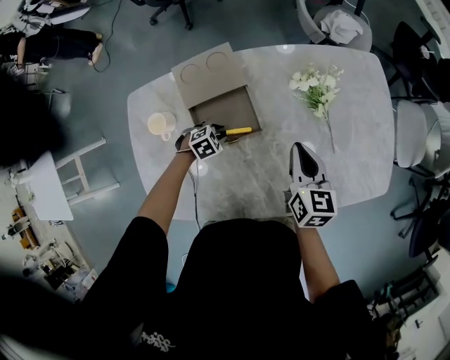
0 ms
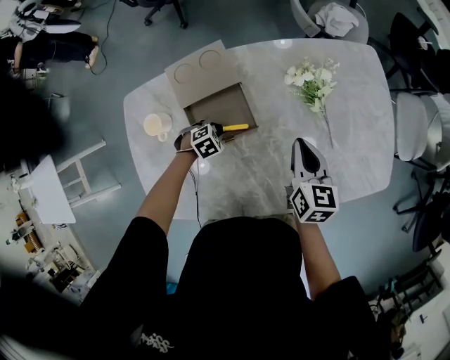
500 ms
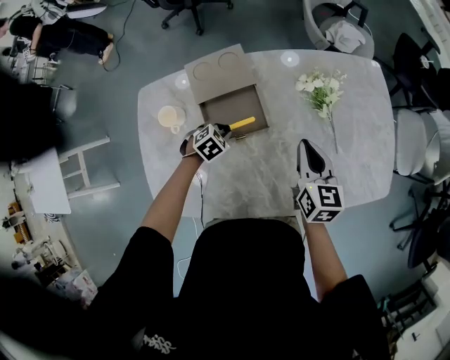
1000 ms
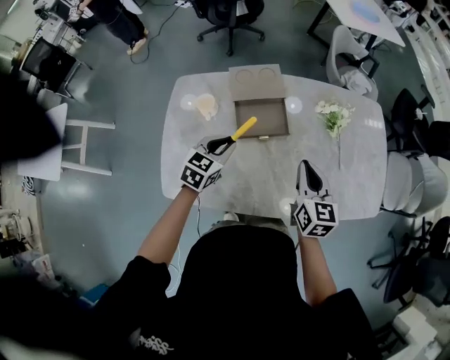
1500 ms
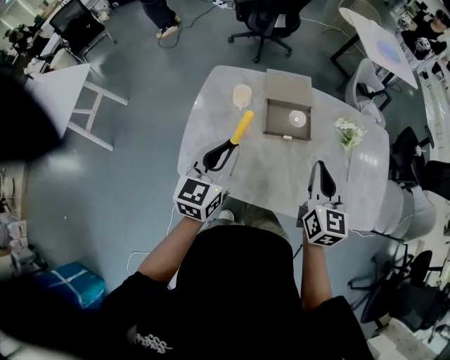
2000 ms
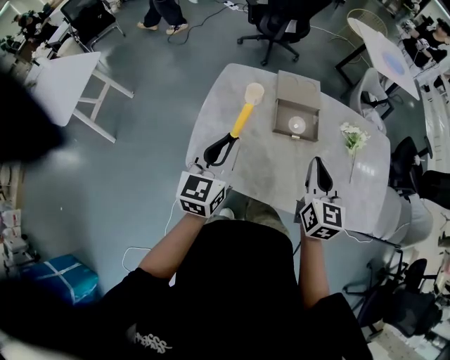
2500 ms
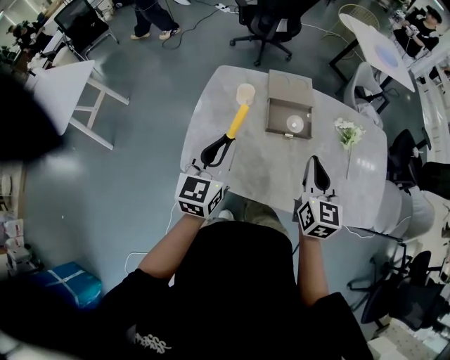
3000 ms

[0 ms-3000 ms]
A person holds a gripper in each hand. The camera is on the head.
0 ms to 1500 ms: The left gripper is displaced upward by about 25 cm, and points its fingers some 40 degrees further upward. The right gripper ends up approximately 15 cm from where it was.
1500 ms to 3000 ms: The right gripper shifts some 15 cm to the left, backward and upward, while the left gripper goes some 25 cm backward, upward and to the left, and changes its angle by approximately 40 degrees.

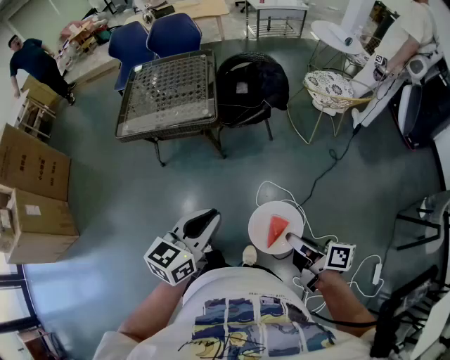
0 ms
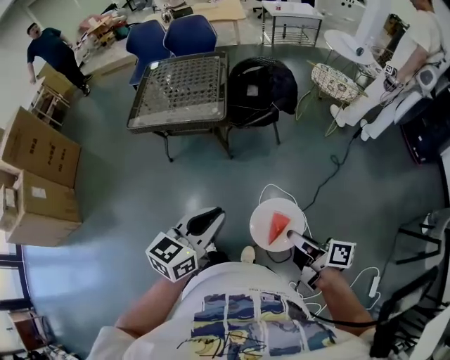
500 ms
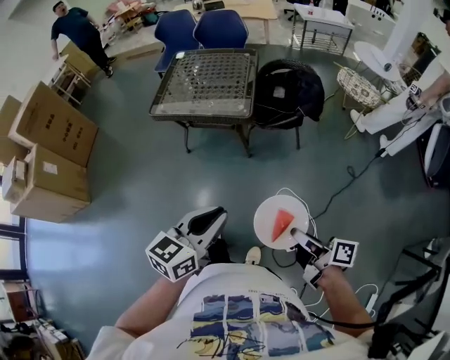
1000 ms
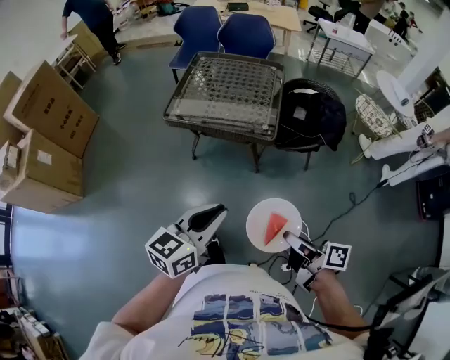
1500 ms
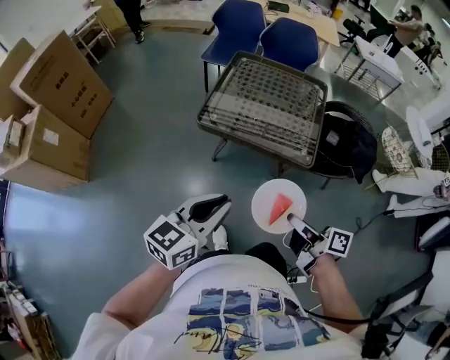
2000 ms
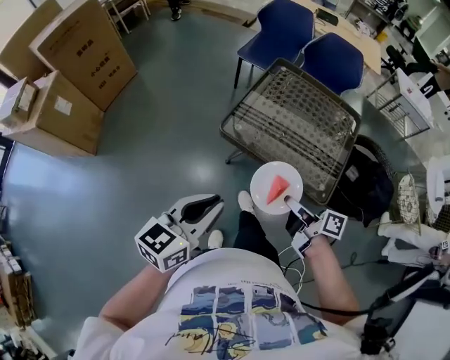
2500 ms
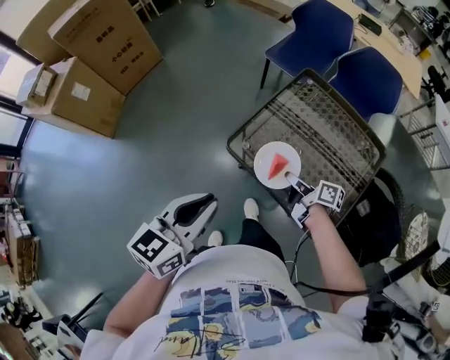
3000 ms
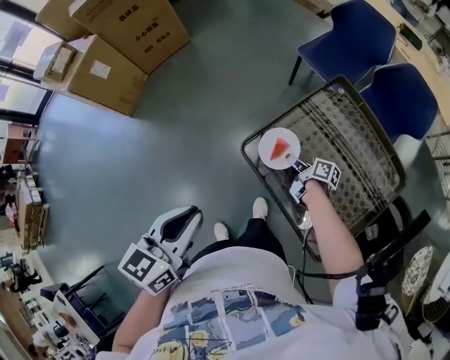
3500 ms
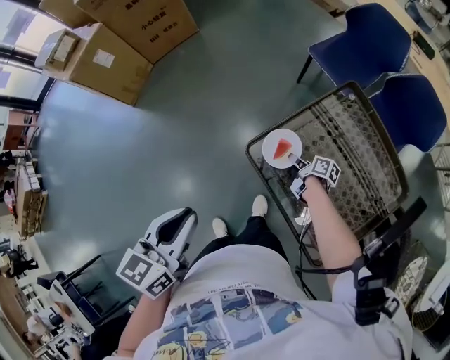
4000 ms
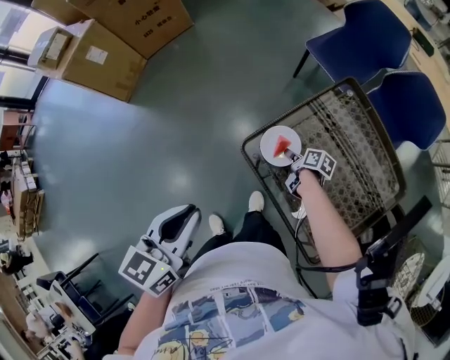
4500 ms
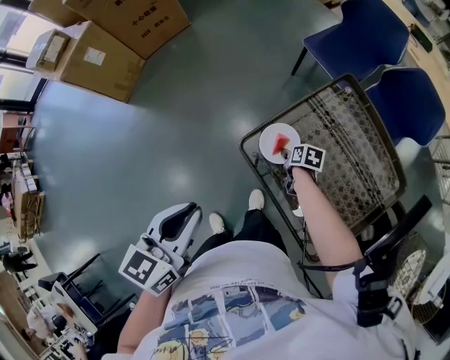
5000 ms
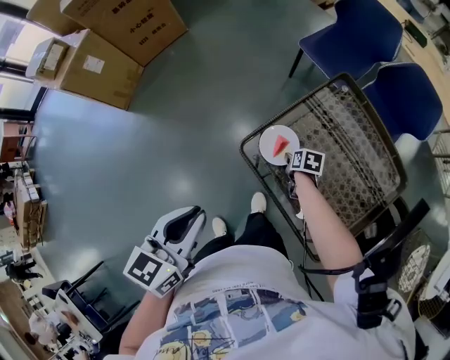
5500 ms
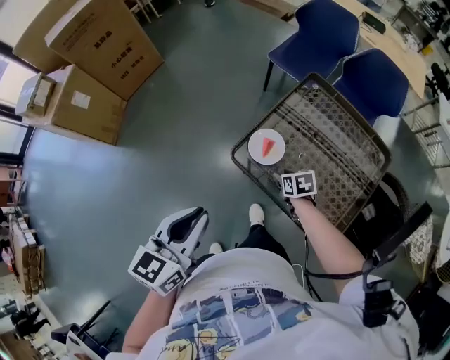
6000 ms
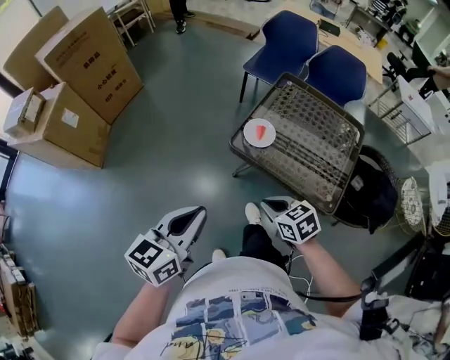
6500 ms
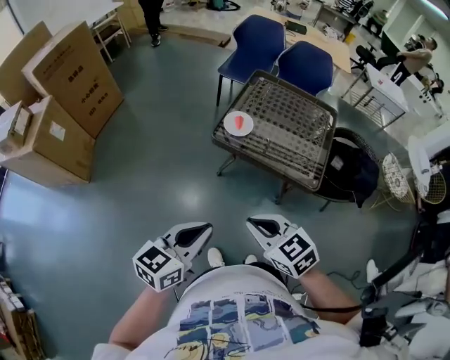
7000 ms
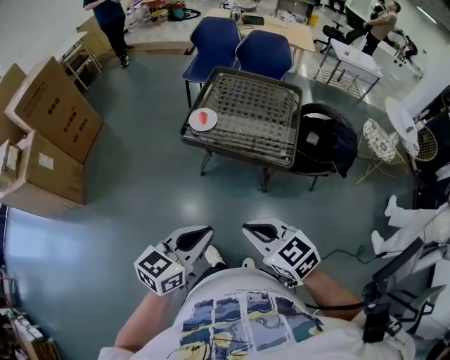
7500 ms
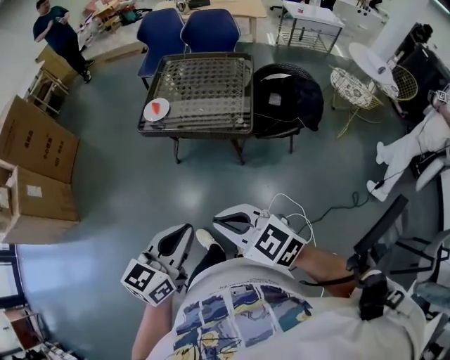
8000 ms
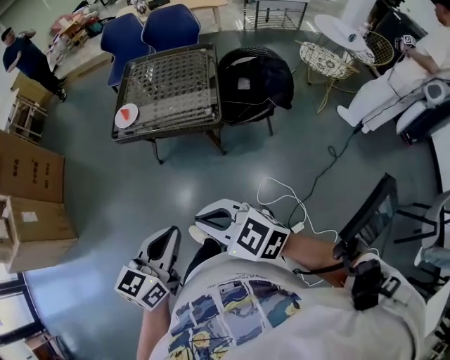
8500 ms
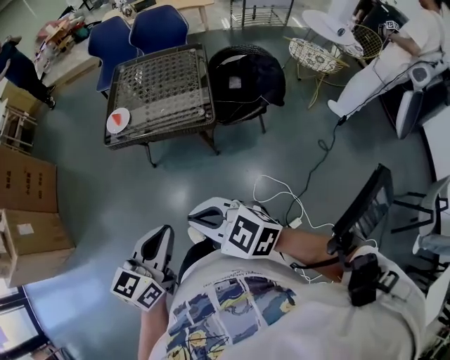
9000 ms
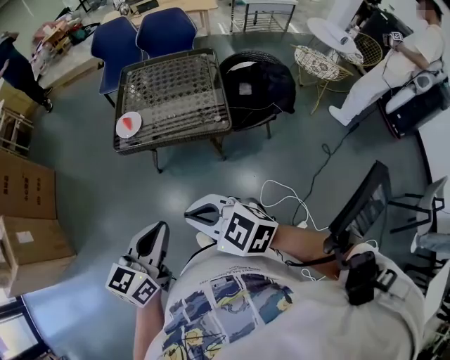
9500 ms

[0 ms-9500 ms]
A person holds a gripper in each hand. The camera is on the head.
0 ms to 2000 ms: The right gripper shifts approximately 40 cm forward and to the left. Meanwhile the left gripper is displaced to the left and forward by approximately 35 cm.
2000 ms to 4000 ms: The right gripper shifts by some 60 cm, and changes its angle by some 40 degrees. The left gripper moves roughly 30 cm, and turns by some 50 degrees.
4000 ms to 5500 ms: The right gripper angles its fingers downward, by roughly 30 degrees, and opens up.
5500 ms to 7500 ms: The left gripper shifts by some 40 cm, and turns by about 50 degrees, while the right gripper shifts by some 70 cm, points its fingers some 30 degrees further upward, and closes its fingers.
7500 ms to 9500 ms: The right gripper moves some 10 cm backward and comes back; the left gripper moves roughly 10 cm to the right and comes back.

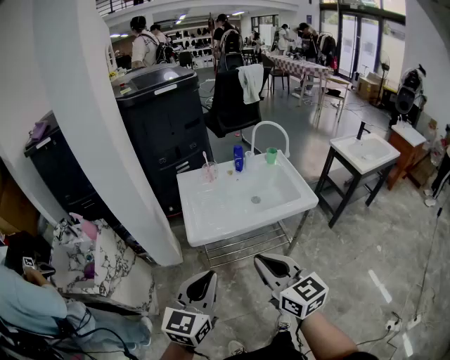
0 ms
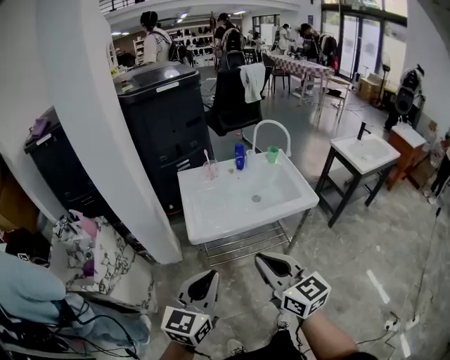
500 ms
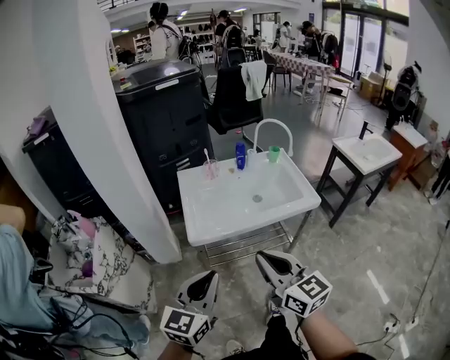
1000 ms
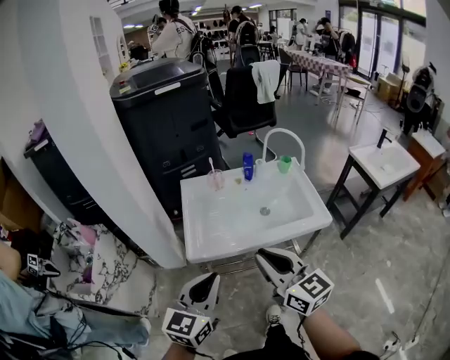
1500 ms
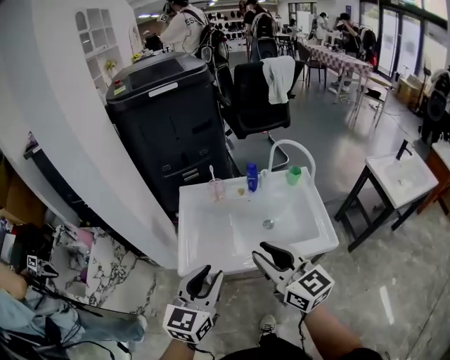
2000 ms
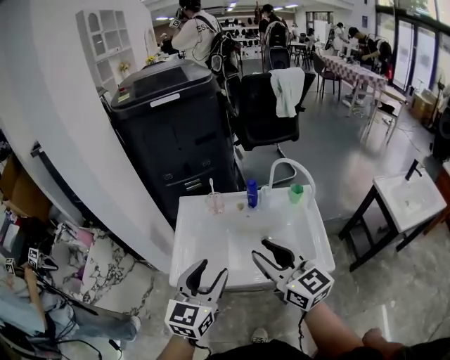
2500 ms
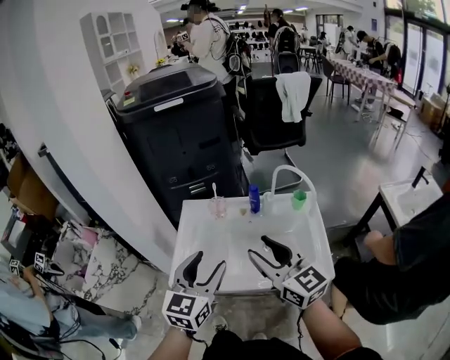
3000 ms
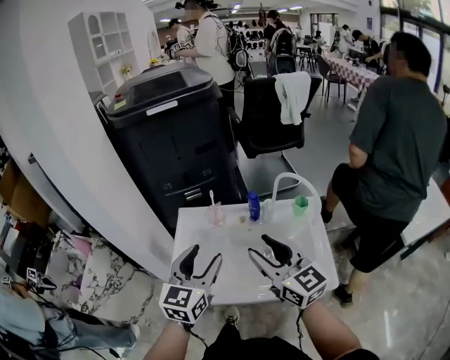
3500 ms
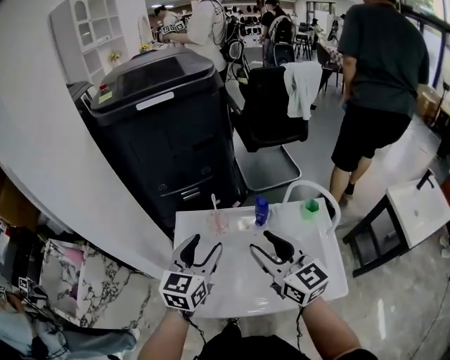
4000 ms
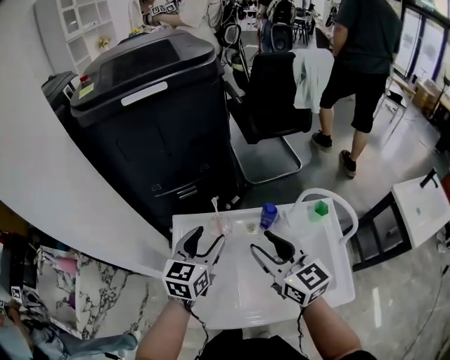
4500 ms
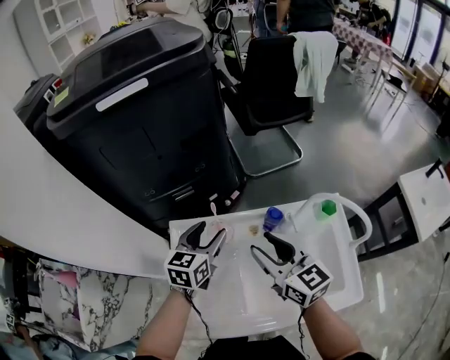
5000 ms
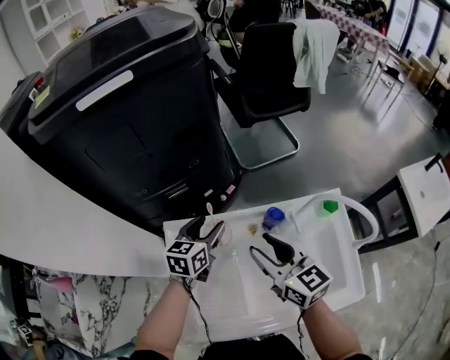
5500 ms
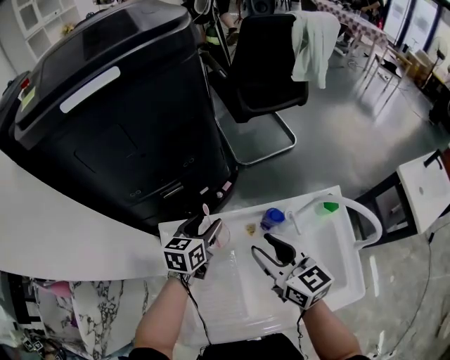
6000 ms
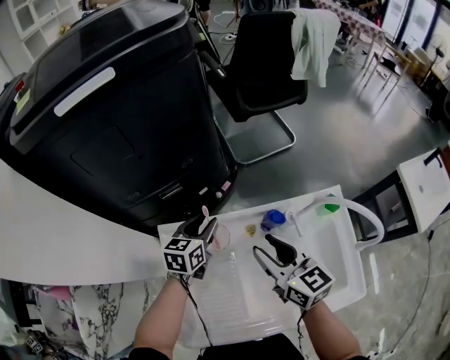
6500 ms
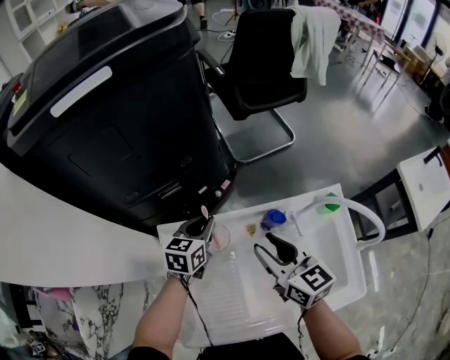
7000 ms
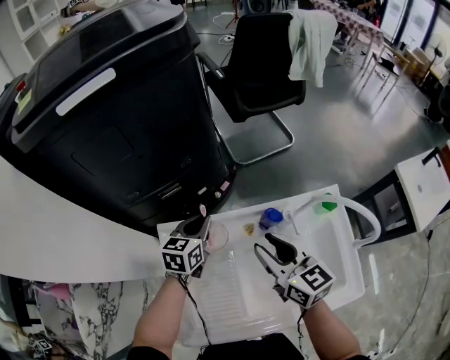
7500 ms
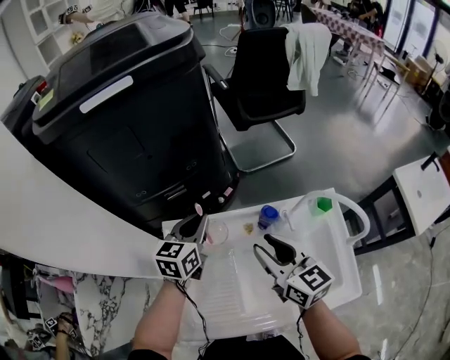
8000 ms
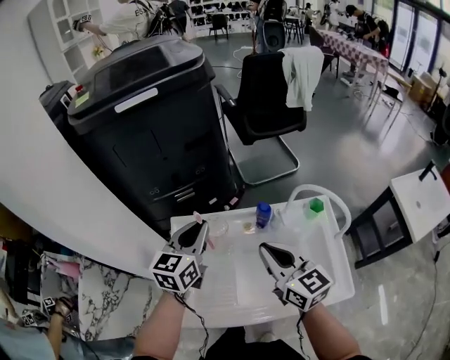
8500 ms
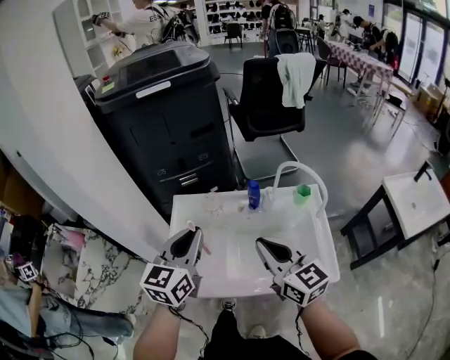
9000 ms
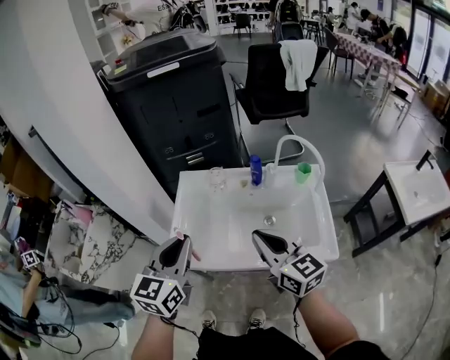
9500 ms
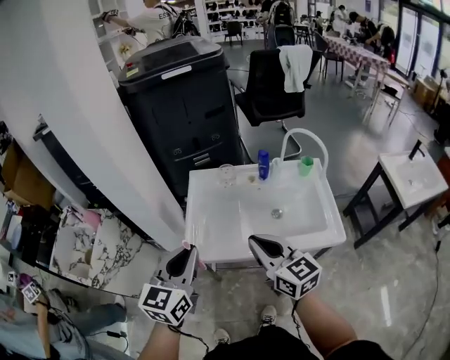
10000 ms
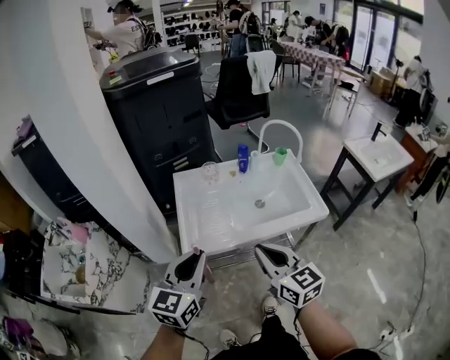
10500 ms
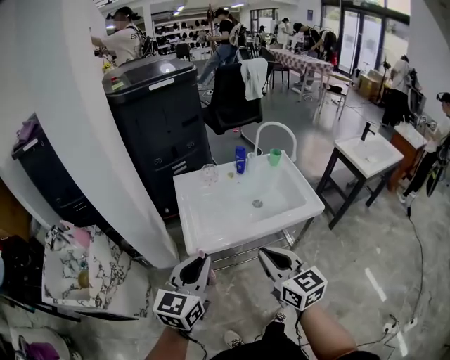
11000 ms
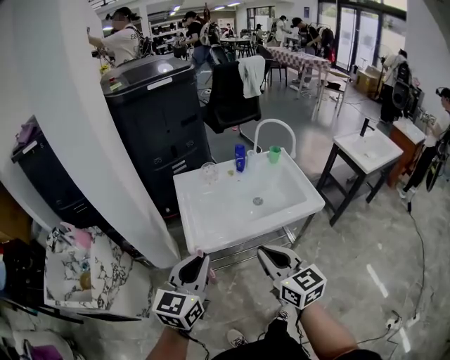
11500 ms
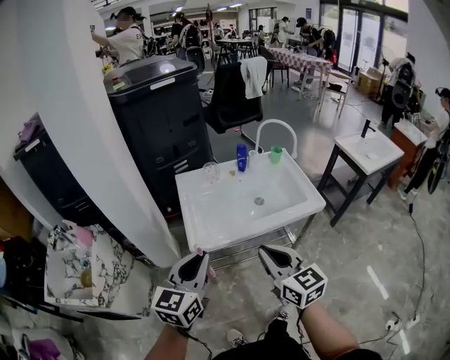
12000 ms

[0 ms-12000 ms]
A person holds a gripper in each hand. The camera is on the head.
0 ms to 2000 ms: The right gripper goes about 25 cm forward, and opens its fingers. Meanwhile the left gripper heads forward and to the right, covering some 25 cm, and opens up.
2000 ms to 4000 ms: The grippers both shift forward by roughly 25 cm. The left gripper opens its fingers.
4000 ms to 6000 ms: The left gripper goes about 30 cm forward and downward, and rotates about 30 degrees. Meanwhile the right gripper travels forward and downward by roughly 20 cm.
6000 ms to 8000 ms: The left gripper heads upward, covering roughly 10 cm, and closes its fingers.
8000 ms to 10000 ms: Both grippers move backward, roughly 40 cm. The right gripper closes its fingers.
10000 ms to 12000 ms: Both grippers travel together backward, some 15 cm. The right gripper turns by approximately 20 degrees.

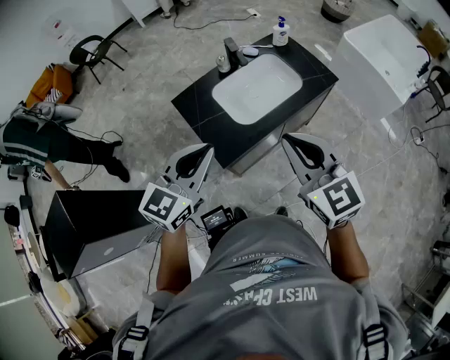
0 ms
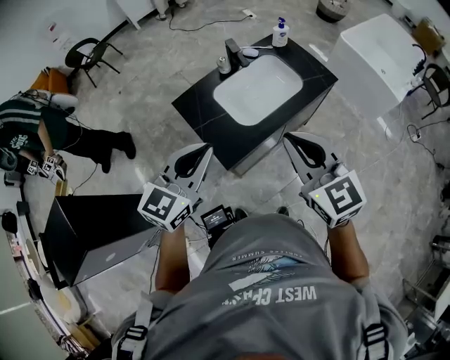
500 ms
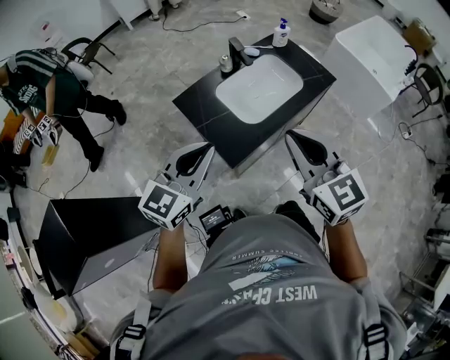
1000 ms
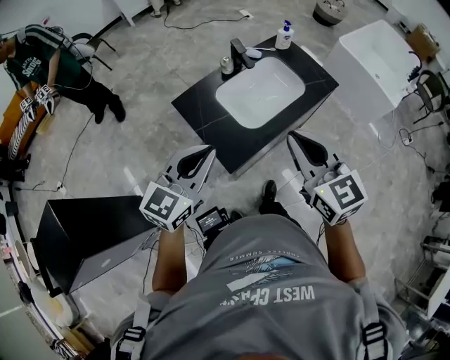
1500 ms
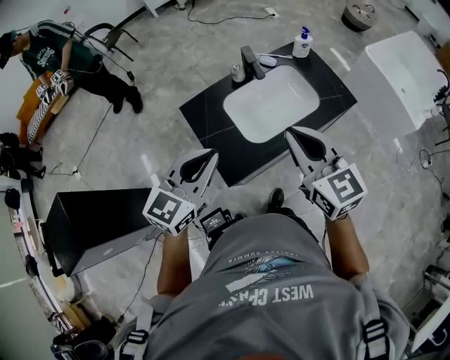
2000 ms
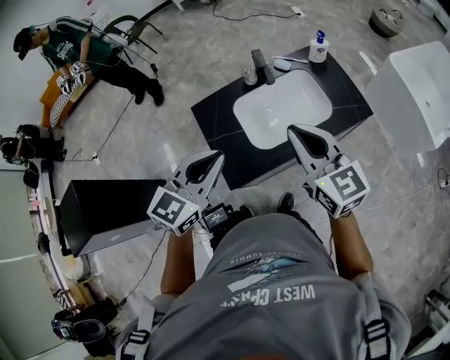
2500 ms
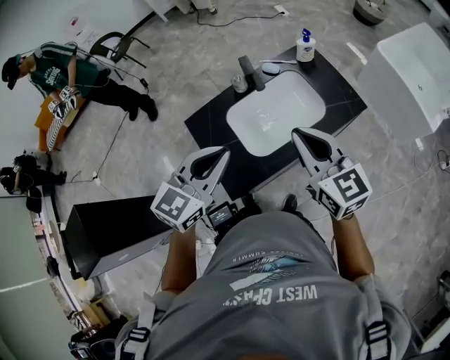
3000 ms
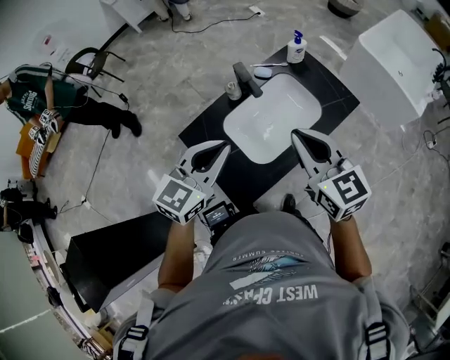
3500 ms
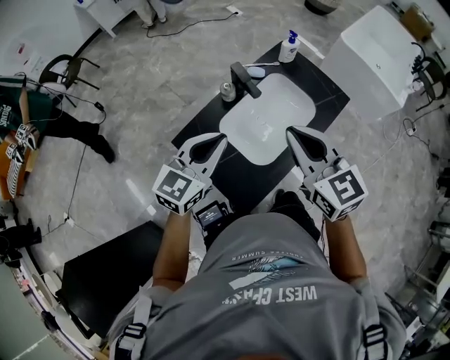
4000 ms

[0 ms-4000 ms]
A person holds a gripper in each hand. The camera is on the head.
0 ms to 2000 ms: The left gripper moves forward, some 10 cm. The right gripper is displaced forward by some 15 cm.
2000 ms to 4000 ms: The right gripper moves forward and to the left, about 10 cm, while the left gripper moves forward, approximately 15 cm.
